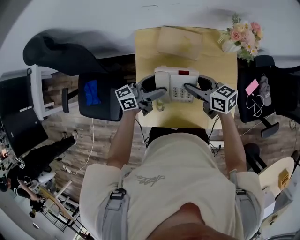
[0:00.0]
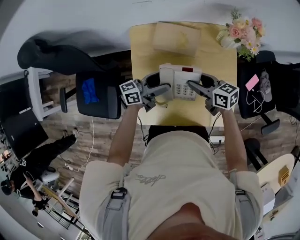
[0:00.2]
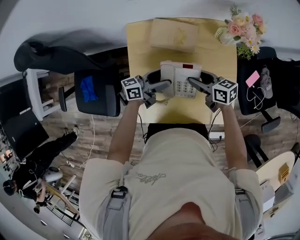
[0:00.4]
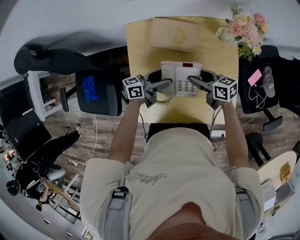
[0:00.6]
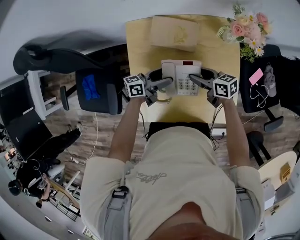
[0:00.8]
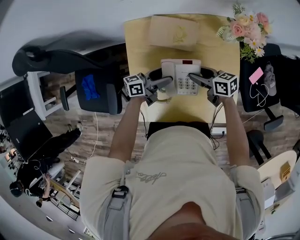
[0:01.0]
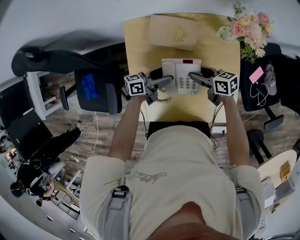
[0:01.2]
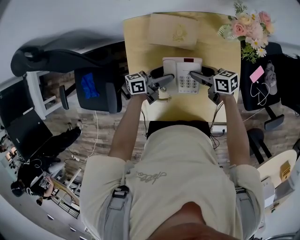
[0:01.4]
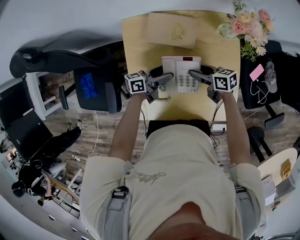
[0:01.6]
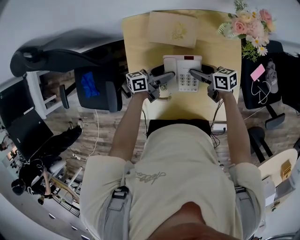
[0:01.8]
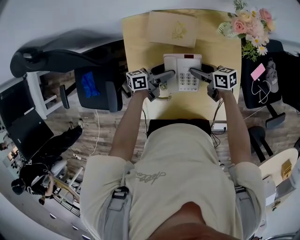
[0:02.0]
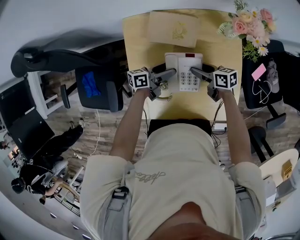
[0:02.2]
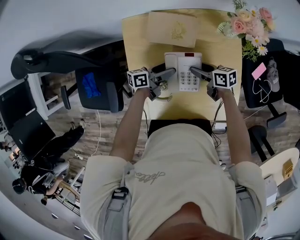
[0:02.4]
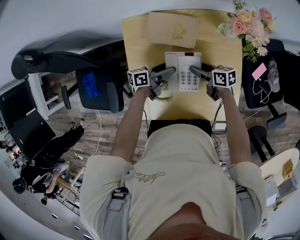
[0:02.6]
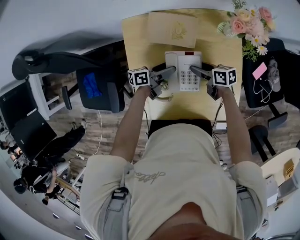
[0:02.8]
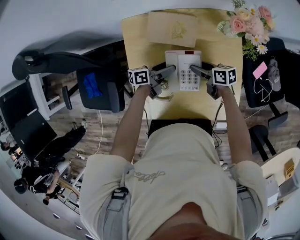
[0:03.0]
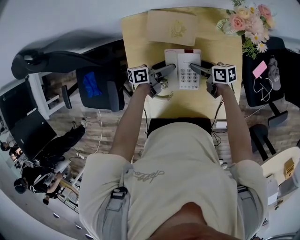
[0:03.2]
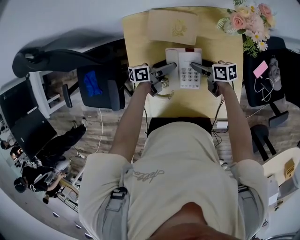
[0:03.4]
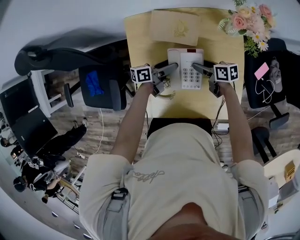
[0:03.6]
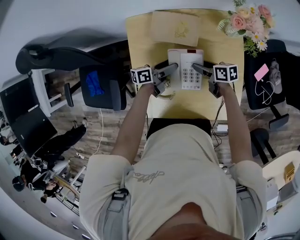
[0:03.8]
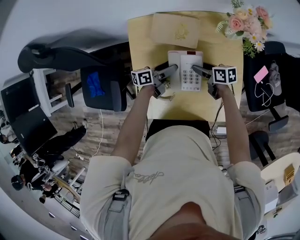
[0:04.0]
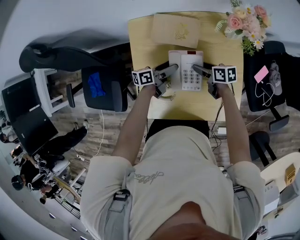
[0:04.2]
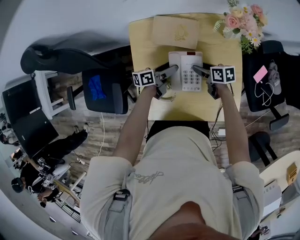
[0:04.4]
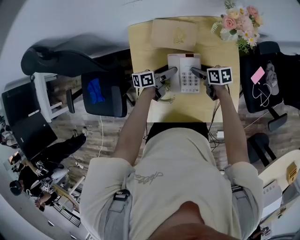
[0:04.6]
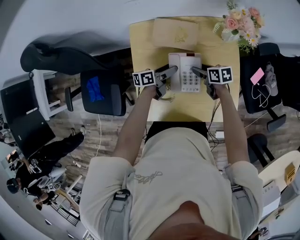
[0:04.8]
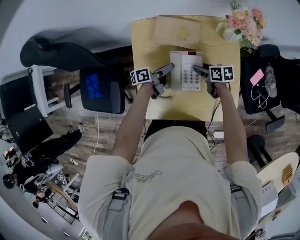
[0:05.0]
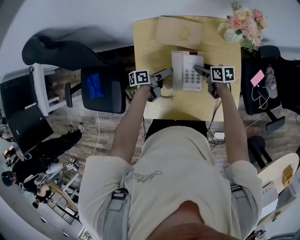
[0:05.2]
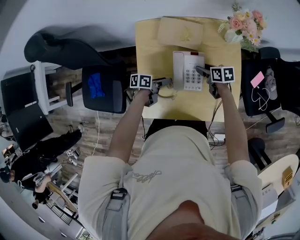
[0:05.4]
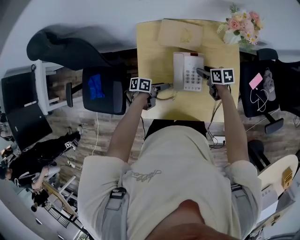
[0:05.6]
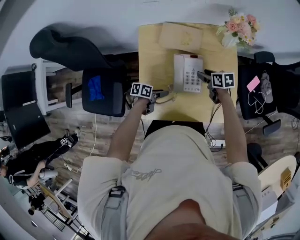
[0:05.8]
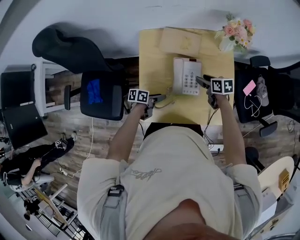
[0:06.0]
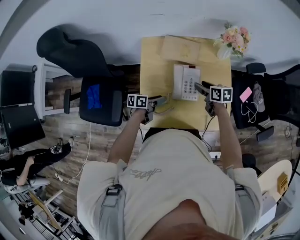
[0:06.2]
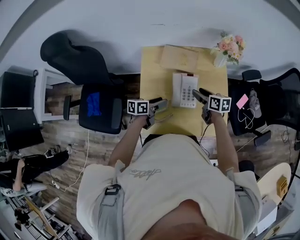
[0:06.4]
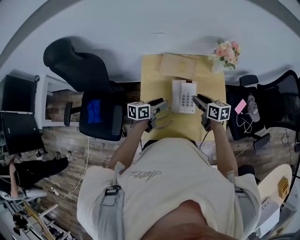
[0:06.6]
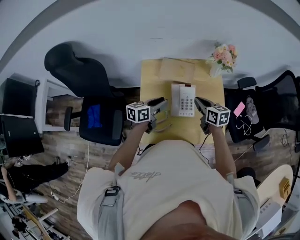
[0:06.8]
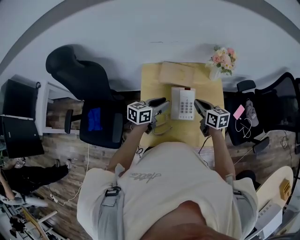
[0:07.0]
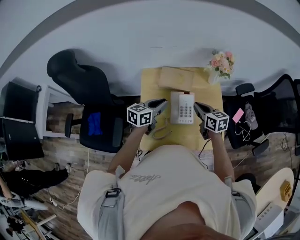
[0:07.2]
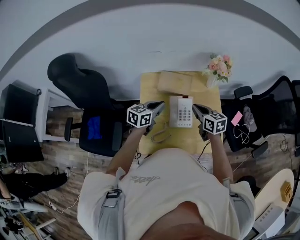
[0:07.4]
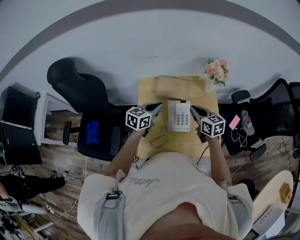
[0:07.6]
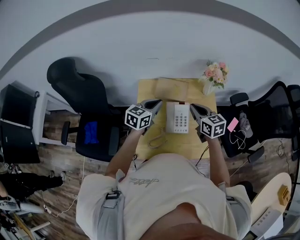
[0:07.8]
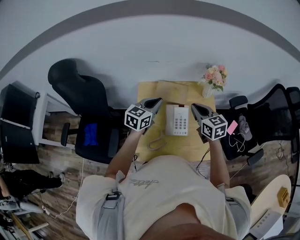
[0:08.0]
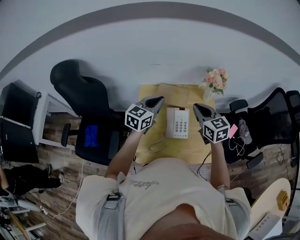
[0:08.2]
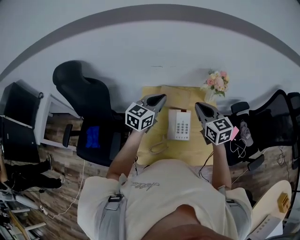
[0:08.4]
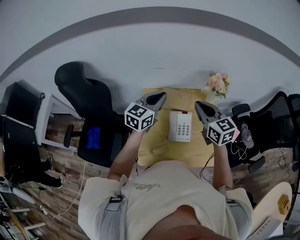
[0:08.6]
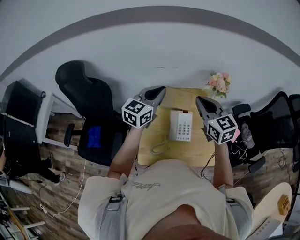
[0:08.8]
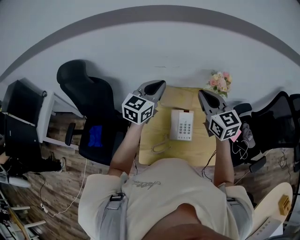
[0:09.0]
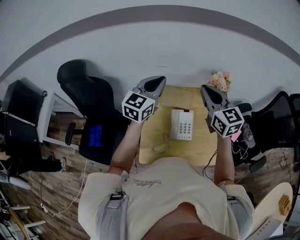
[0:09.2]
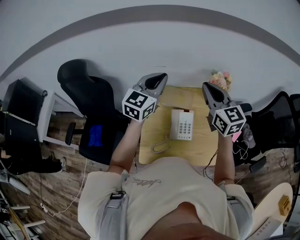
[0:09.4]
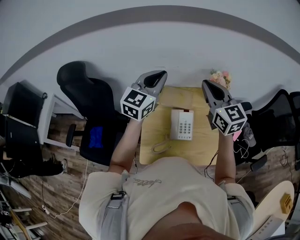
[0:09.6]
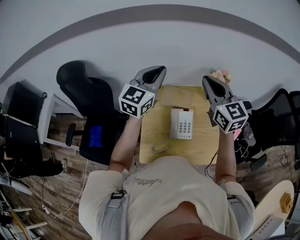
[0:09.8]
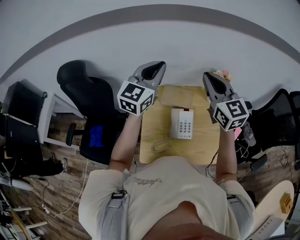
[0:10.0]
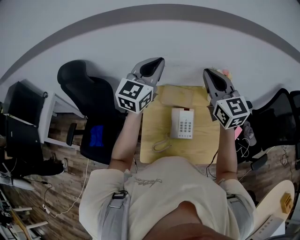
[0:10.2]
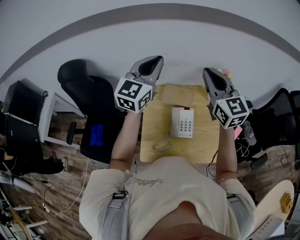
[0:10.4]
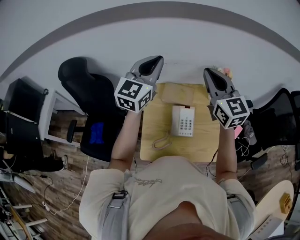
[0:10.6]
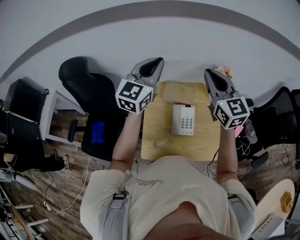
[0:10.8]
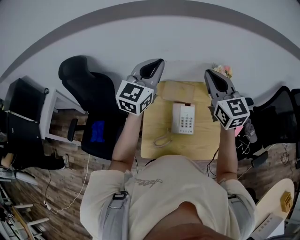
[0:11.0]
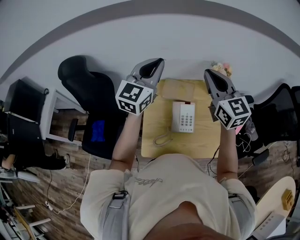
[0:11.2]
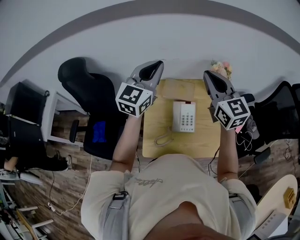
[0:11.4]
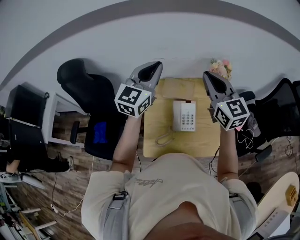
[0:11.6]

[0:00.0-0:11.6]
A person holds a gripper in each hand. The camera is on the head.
0:00.0 to 0:01.4: Both grippers travel together downward, approximately 15 cm.
0:01.4 to 0:04.4: The grippers stay close to where they were, moving slightly.
0:04.4 to 0:05.8: The left gripper shifts by about 15 cm, rotates about 30 degrees, and closes its fingers.
0:05.8 to 0:07.2: Both grippers move upward, about 20 cm. The left gripper turns by about 50 degrees, and closes up, while the right gripper changes its angle by approximately 30 degrees, and closes its fingers.
0:07.2 to 0:08.8: The two grippers go roughly 20 cm upward. The left gripper changes its angle by about 30 degrees, while the right gripper turns by approximately 30 degrees.
0:08.8 to 0:10.2: Both grippers travel together upward, about 10 cm.
0:10.2 to 0:11.6: There are only small adjustments of the grippers.

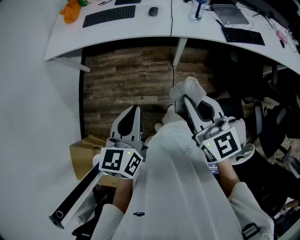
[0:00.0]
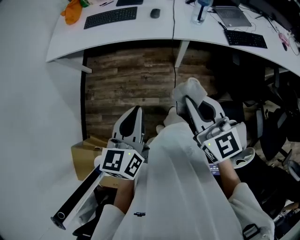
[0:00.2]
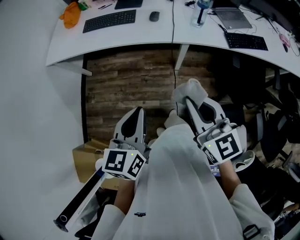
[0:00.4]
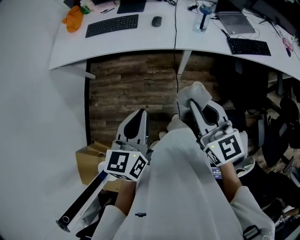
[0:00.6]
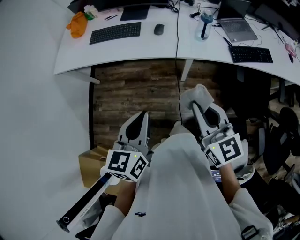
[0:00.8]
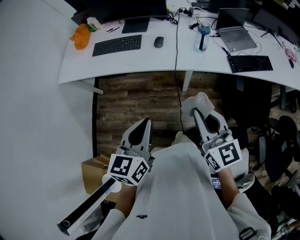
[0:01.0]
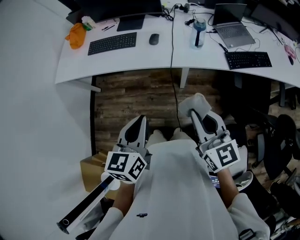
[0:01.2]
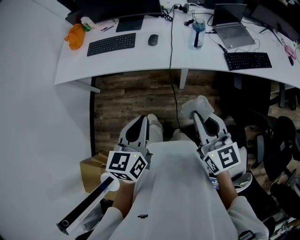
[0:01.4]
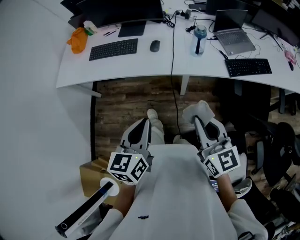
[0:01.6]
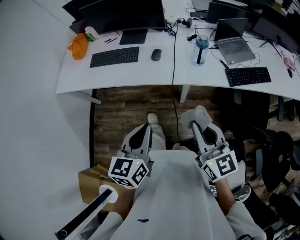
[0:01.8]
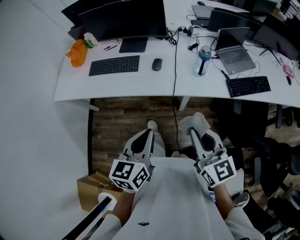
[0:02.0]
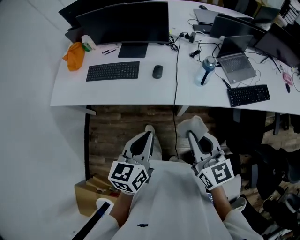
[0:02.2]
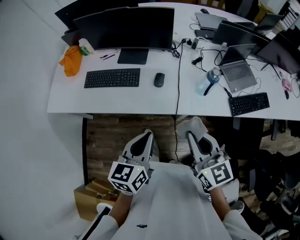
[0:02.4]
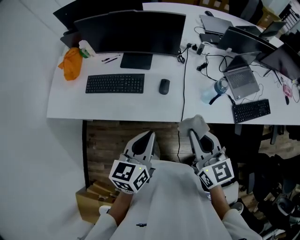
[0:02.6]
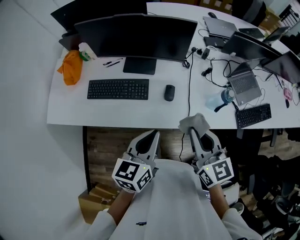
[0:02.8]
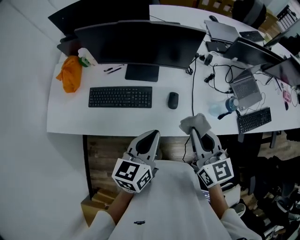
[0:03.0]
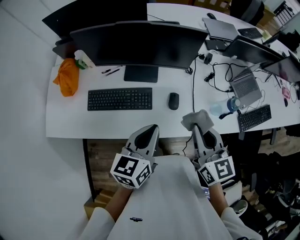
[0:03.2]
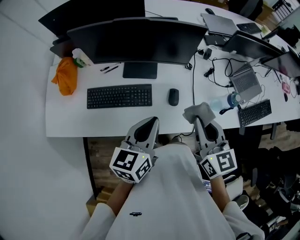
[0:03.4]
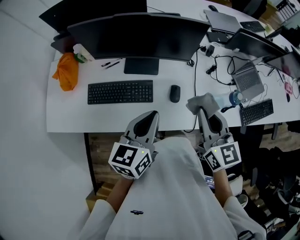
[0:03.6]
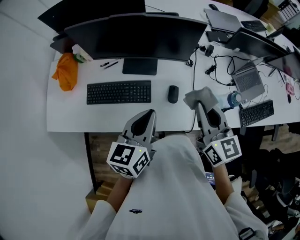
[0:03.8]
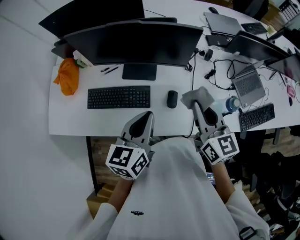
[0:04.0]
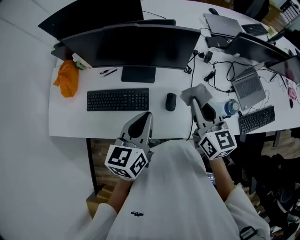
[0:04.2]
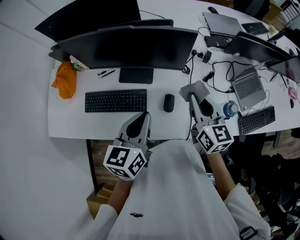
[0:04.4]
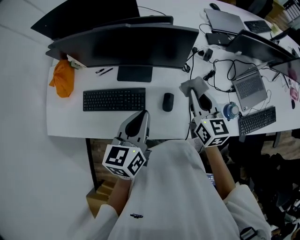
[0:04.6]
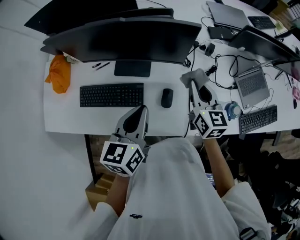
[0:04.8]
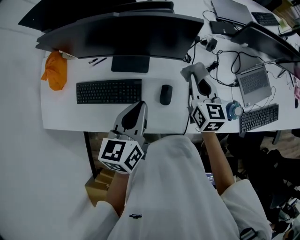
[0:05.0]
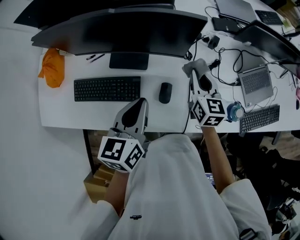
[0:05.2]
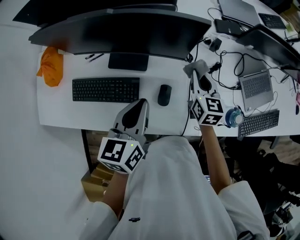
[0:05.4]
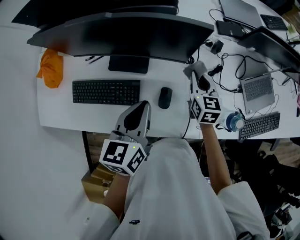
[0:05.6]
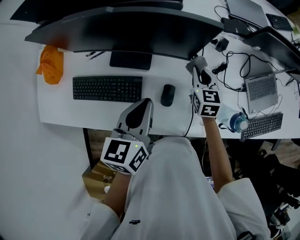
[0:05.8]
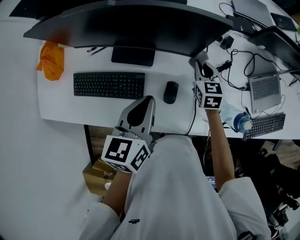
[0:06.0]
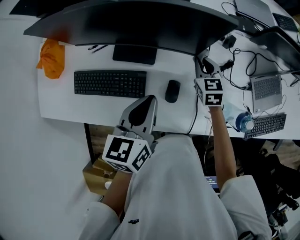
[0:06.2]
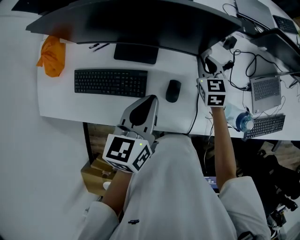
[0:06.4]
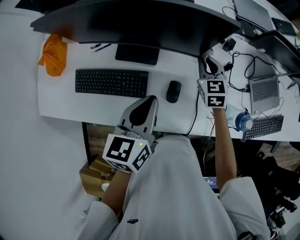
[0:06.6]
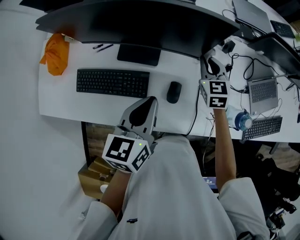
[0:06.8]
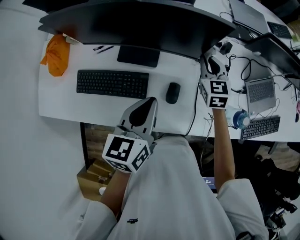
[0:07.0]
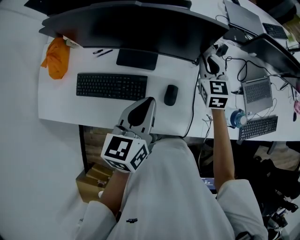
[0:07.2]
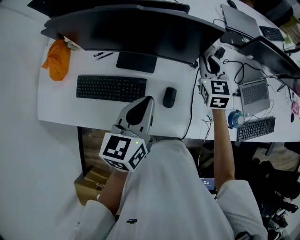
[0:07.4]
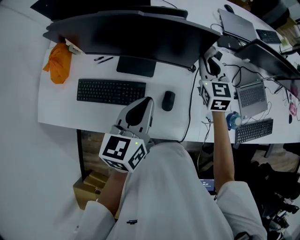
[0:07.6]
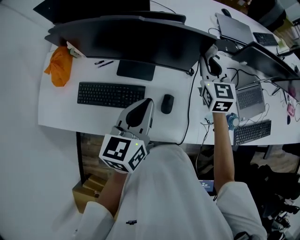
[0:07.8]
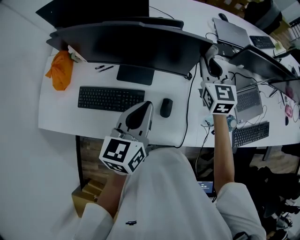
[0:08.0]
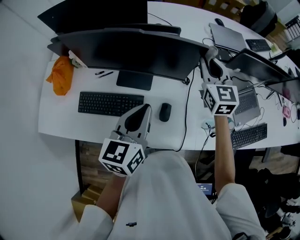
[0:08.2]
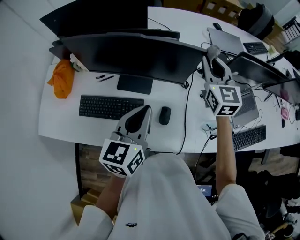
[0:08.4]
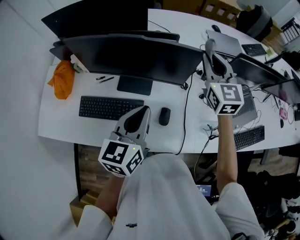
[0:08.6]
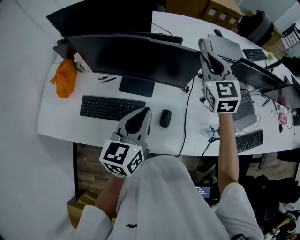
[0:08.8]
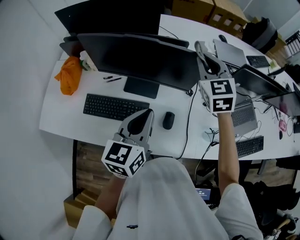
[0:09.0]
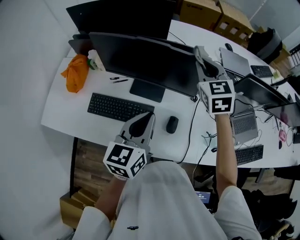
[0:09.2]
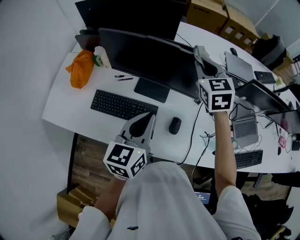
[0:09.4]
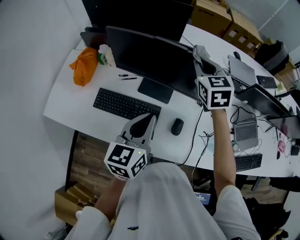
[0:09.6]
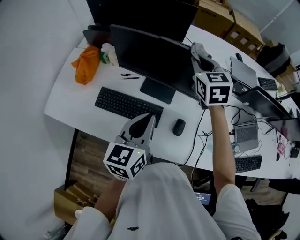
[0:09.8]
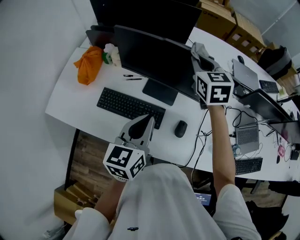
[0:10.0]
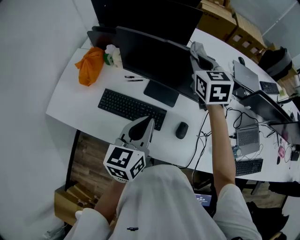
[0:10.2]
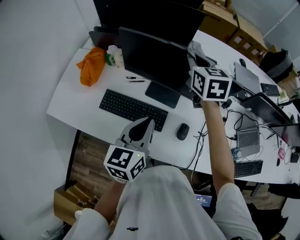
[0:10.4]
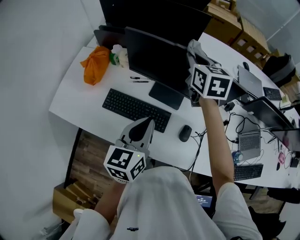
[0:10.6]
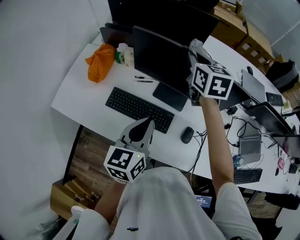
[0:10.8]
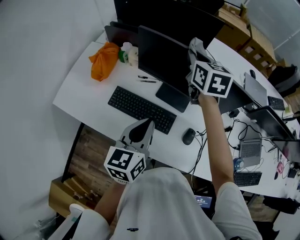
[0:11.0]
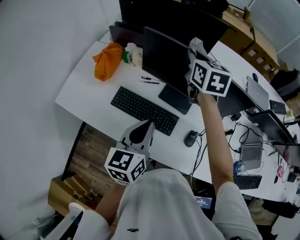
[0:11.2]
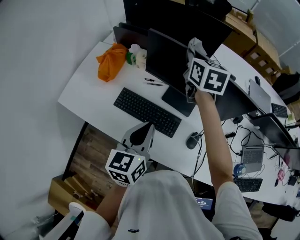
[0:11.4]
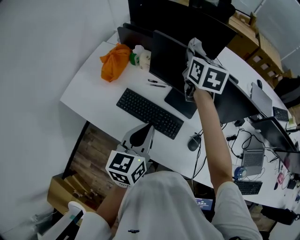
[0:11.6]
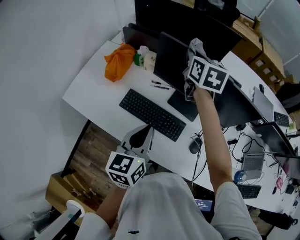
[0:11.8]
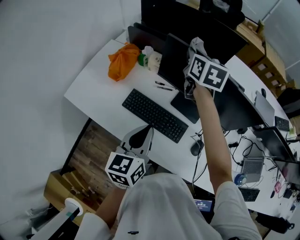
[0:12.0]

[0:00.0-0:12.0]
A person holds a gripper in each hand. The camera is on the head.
0:00.0 to 0:01.6: Both grippers travel together forward and to the right, some 15 cm.
0:01.6 to 0:03.0: The right gripper goes roughly 35 cm forward and to the left. Meanwhile the left gripper travels forward by approximately 35 cm.
0:03.0 to 0:04.4: The grippers both shift forward by approximately 15 cm.
0:04.4 to 0:06.0: The right gripper is displaced downward and forward by roughly 25 cm, and rotates roughly 30 degrees; the left gripper travels forward and downward by roughly 10 cm.
0:06.0 to 0:07.6: The left gripper heads upward, covering some 5 cm. The right gripper travels upward by about 15 cm.
0:07.6 to 0:09.0: The right gripper moves upward and to the left, approximately 15 cm. The left gripper ends up roughly 5 cm from where it was.
0:09.0 to 0:10.4: The left gripper heads to the left, covering roughly 10 cm, while the right gripper travels to the left by some 20 cm, and swivels some 20 degrees.
0:10.4 to 0:12.0: The left gripper heads to the left, covering about 10 cm, while the right gripper is displaced to the left and forward by about 20 cm.
